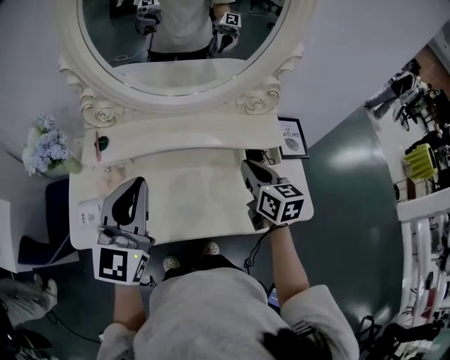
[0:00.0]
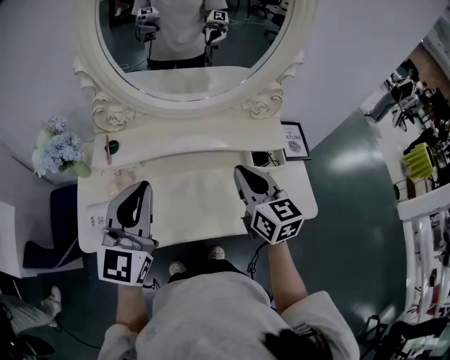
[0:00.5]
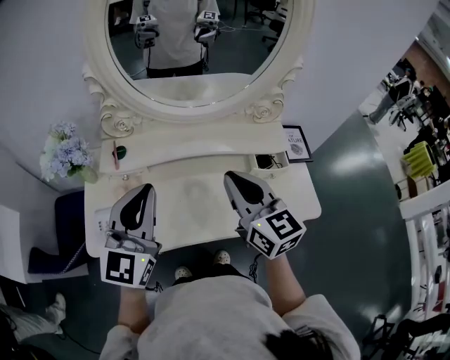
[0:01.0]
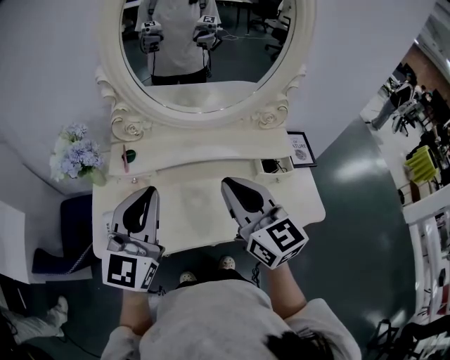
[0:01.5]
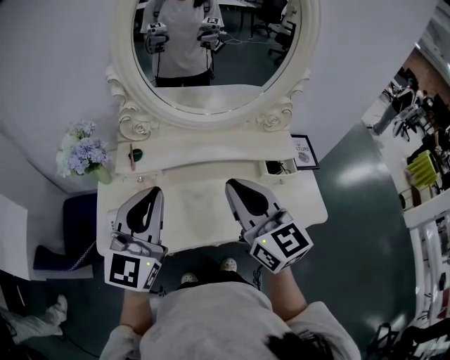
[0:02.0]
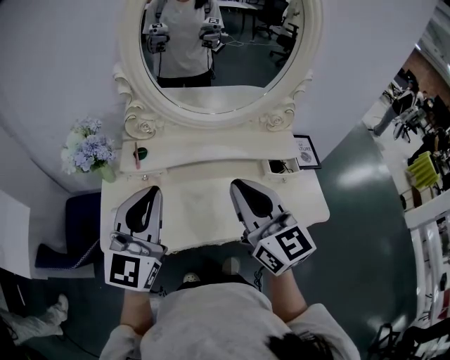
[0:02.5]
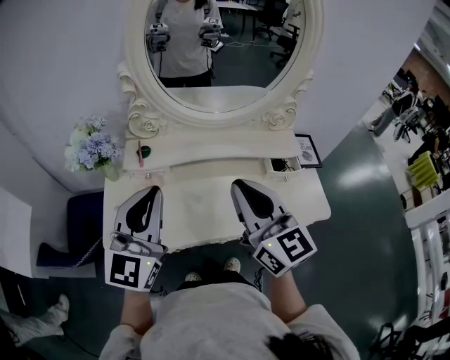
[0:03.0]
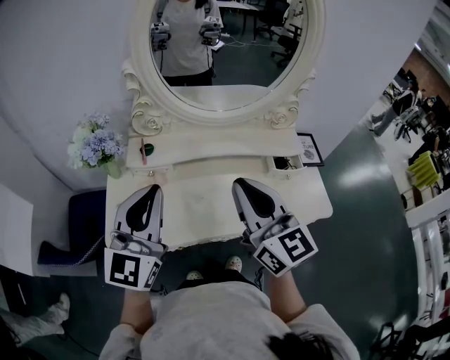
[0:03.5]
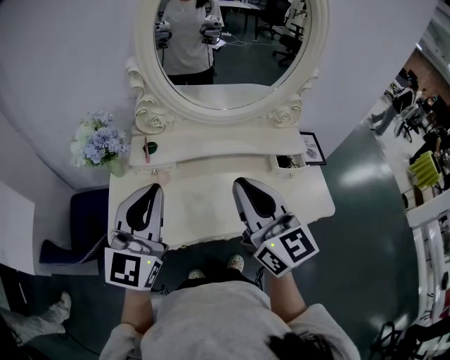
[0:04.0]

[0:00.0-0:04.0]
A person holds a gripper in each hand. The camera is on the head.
0:00.0 to 0:02.0: The right gripper is displaced to the left, upward and backward by about 25 cm, and turns by about 30 degrees. Meanwhile the left gripper travels to the left by roughly 5 cm.
0:02.0 to 0:04.0: The left gripper shifts by roughly 5 cm. The right gripper moves some 5 cm.

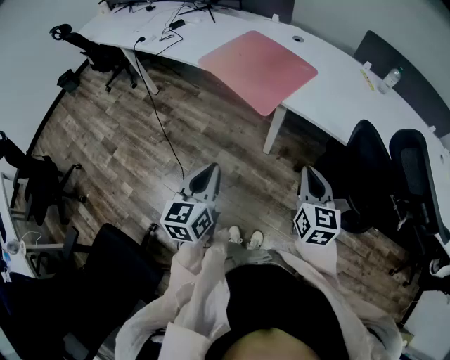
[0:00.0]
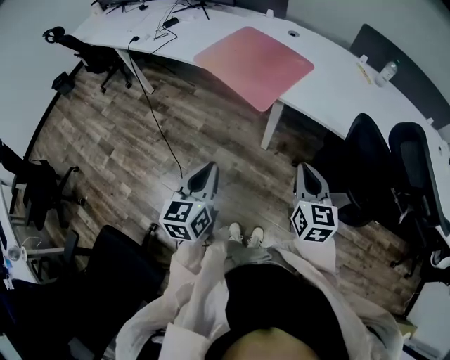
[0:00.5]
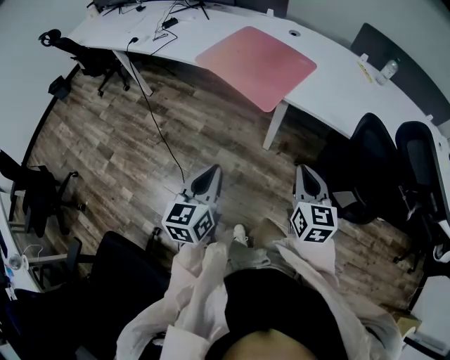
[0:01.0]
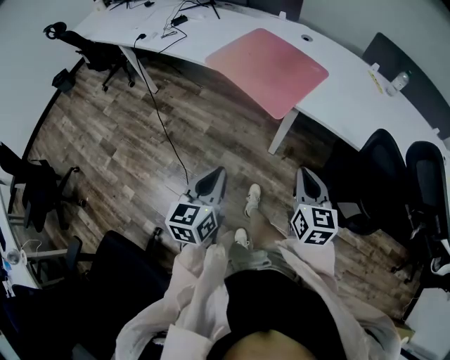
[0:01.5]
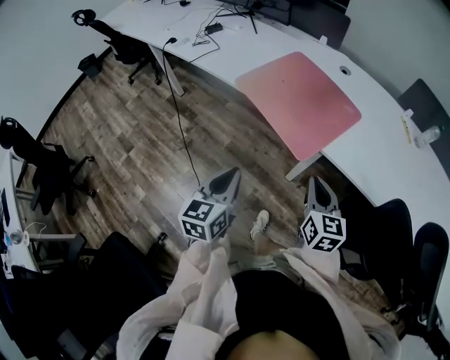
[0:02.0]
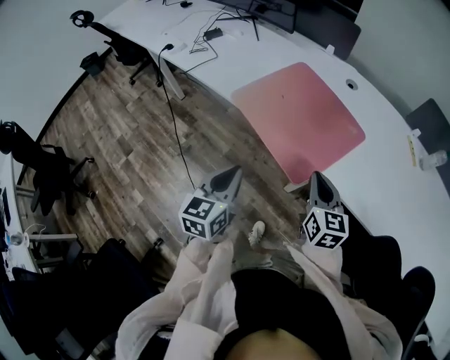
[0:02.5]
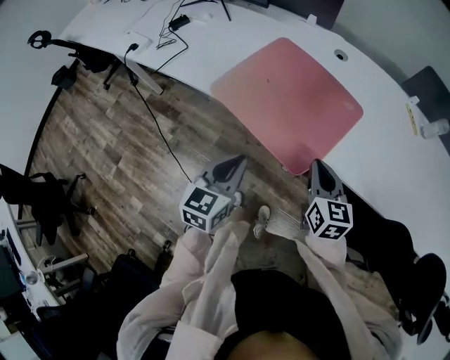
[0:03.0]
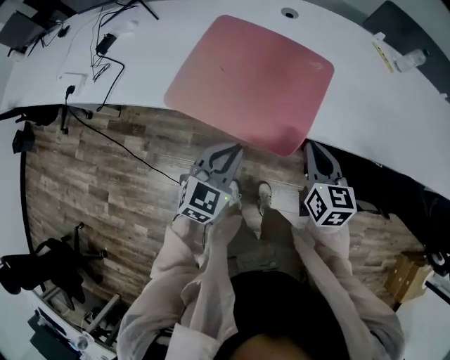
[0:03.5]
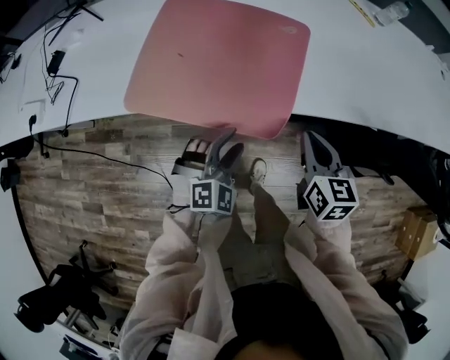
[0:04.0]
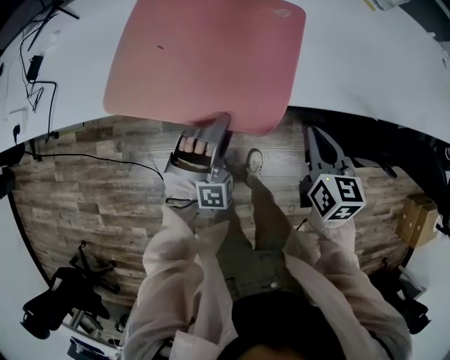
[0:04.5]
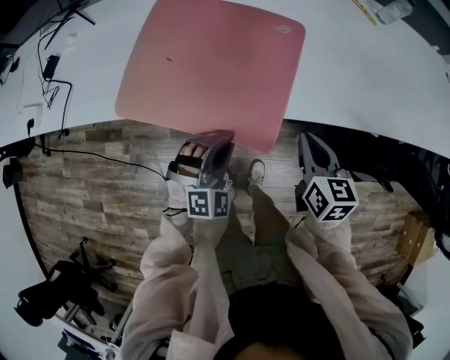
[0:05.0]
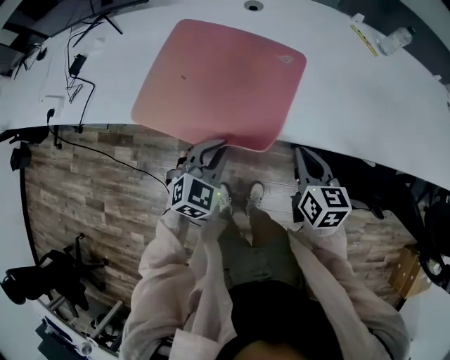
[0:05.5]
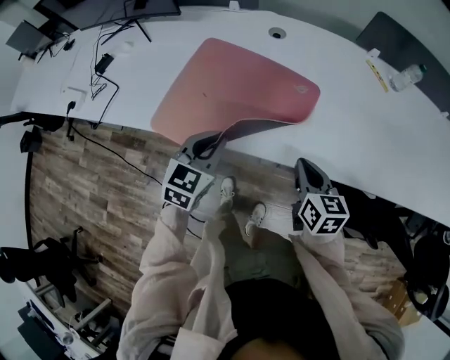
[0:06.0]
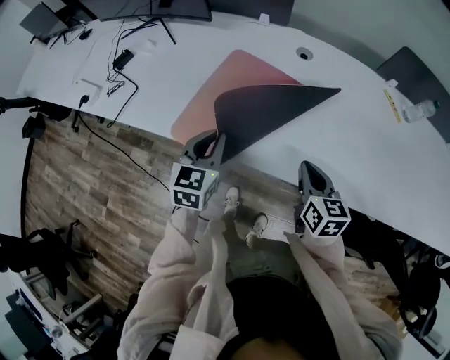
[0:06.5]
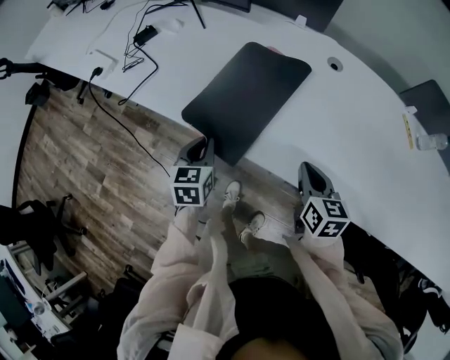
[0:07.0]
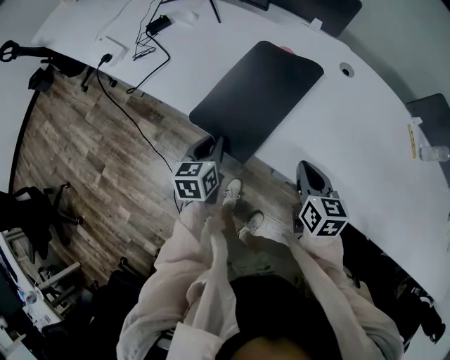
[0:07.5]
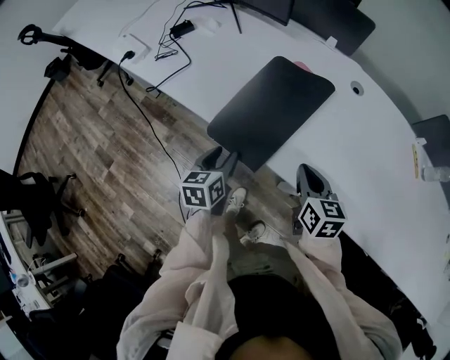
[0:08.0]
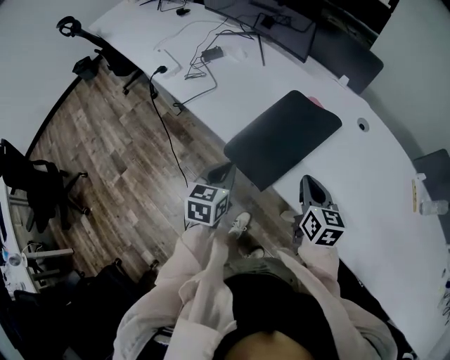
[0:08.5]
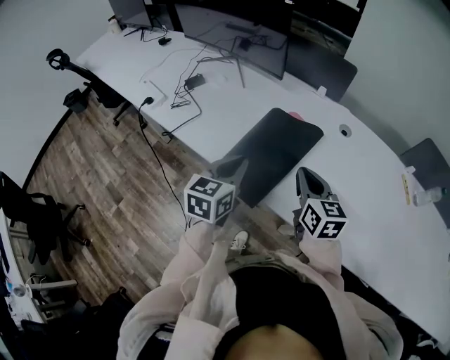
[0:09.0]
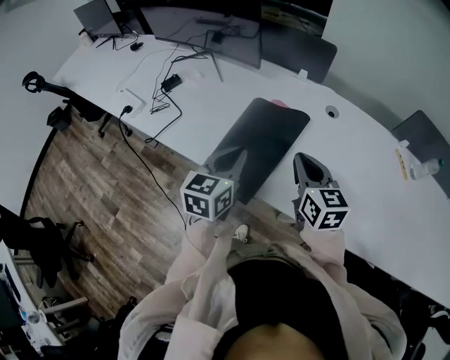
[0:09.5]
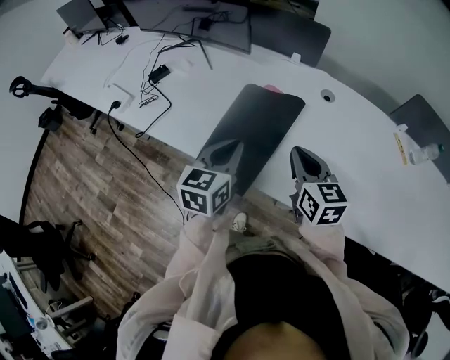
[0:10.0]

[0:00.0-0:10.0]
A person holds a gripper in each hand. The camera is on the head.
0:00.0 to 0:02.0: Both grippers move forward and to the left, about 20 cm.
0:02.0 to 0:04.0: The left gripper moves about 25 cm, rotates around the line of its fingers by roughly 70 degrees, clockwise from behind, and opens. The right gripper ends up approximately 15 cm from where it was, and swivels approximately 30 degrees.
0:04.0 to 0:06.0: The left gripper goes about 15 cm upward and forward, rolls counterclockwise, seen from behind, by roughly 40 degrees, and closes. Meanwhile the right gripper goes about 5 cm forward.
0:06.0 to 0:08.0: The left gripper moves to the left and downward, roughly 20 cm, rotates around the line of its fingers by about 40 degrees, counterclockwise from behind, and opens up, while the right gripper shifts about 20 cm to the left and forward, and changes its angle by about 20 degrees.
0:08.0 to 0:10.0: The right gripper moves upward and forward, roughly 10 cm. The left gripper is displaced upward, to the right and forward by some 20 cm, changes its angle by about 30 degrees, and closes.

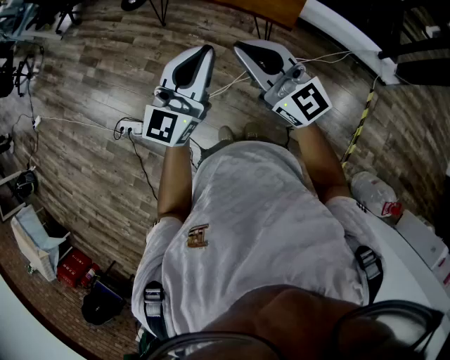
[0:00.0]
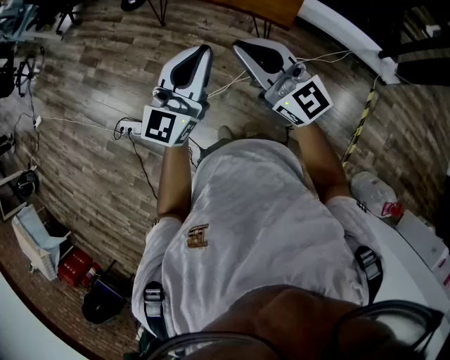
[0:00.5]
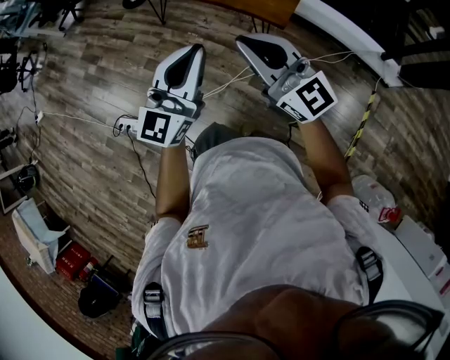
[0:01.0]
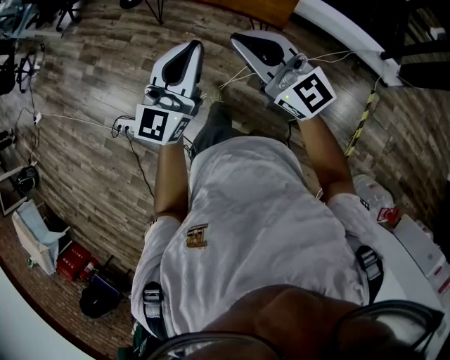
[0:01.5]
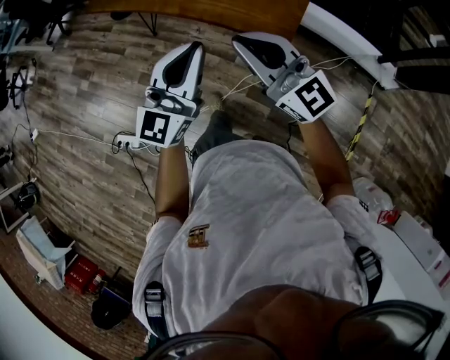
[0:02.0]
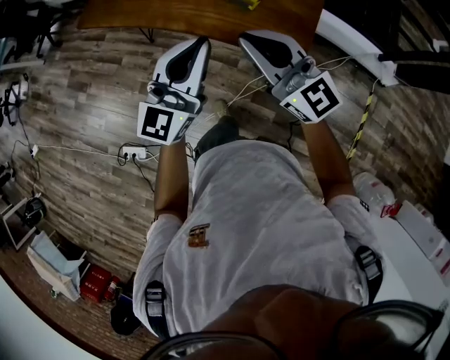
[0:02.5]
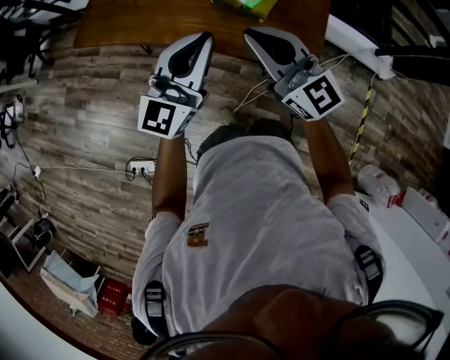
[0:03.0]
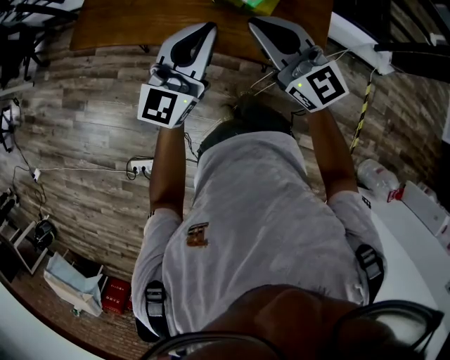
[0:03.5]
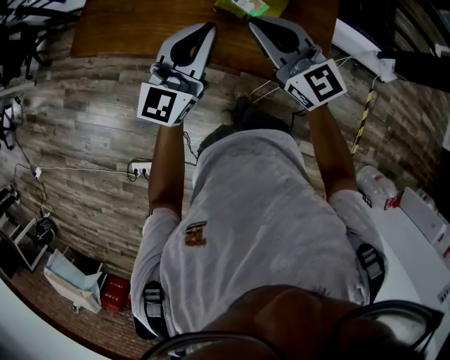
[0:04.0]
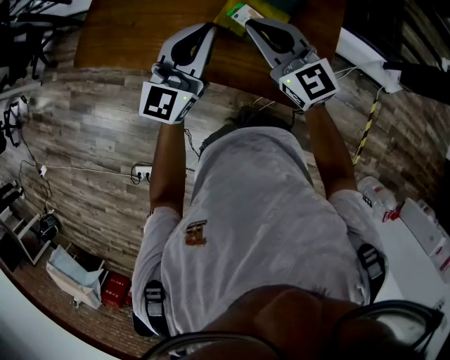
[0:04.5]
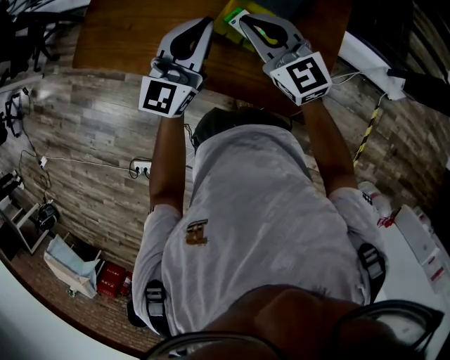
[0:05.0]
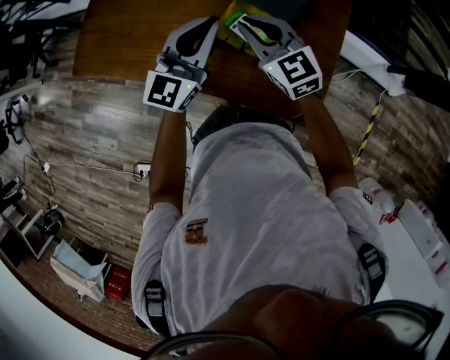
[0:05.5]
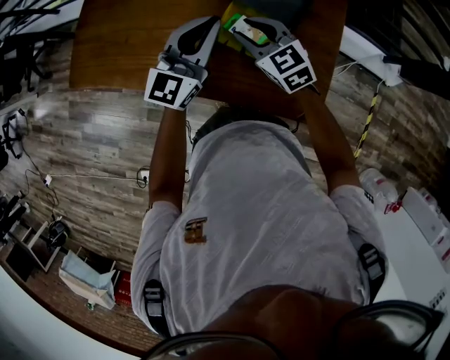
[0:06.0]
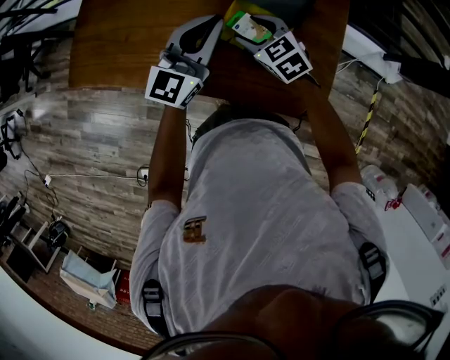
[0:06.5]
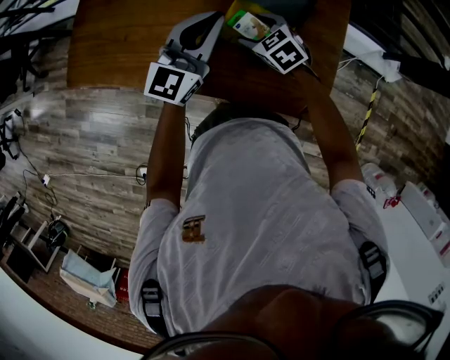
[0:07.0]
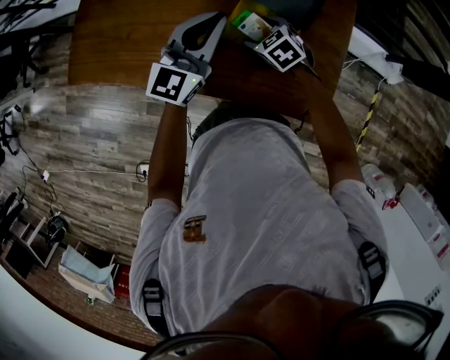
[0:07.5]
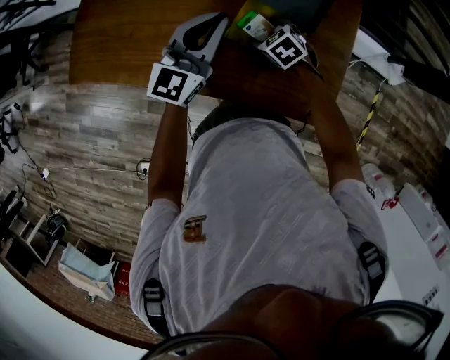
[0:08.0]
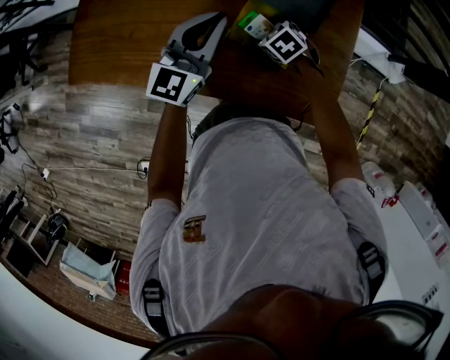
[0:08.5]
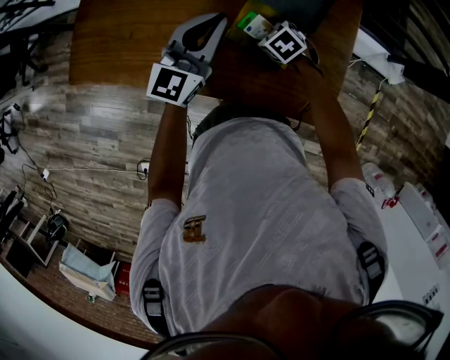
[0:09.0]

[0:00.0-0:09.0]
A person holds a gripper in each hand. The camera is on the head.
0:00.0 to 0:02.0: The two grippers go about 15 cm forward.
0:02.0 to 0:04.5: The pair of grippers is taken forward, roughly 50 cm. The right gripper changes its angle by roughly 20 degrees.
0:04.5 to 0:07.0: The right gripper goes roughly 25 cm downward and forward, tips its fingers downward by roughly 40 degrees, and opens its fingers. The left gripper moves forward and downward, some 15 cm.
0:07.0 to 0:09.0: The right gripper heads downward, covering some 5 cm.

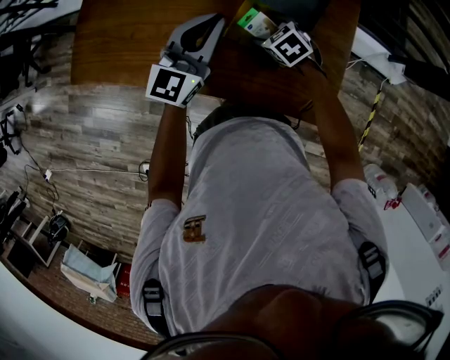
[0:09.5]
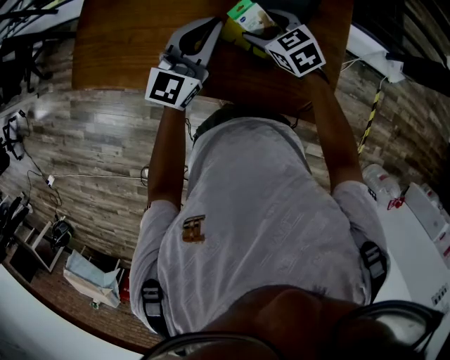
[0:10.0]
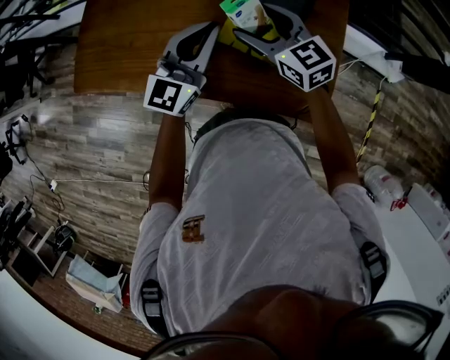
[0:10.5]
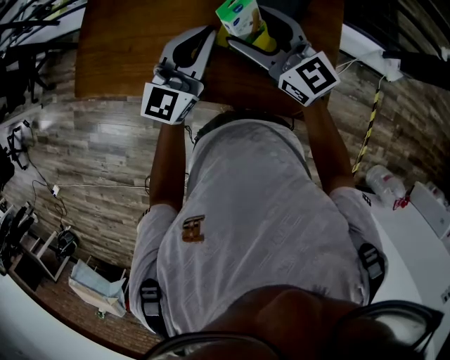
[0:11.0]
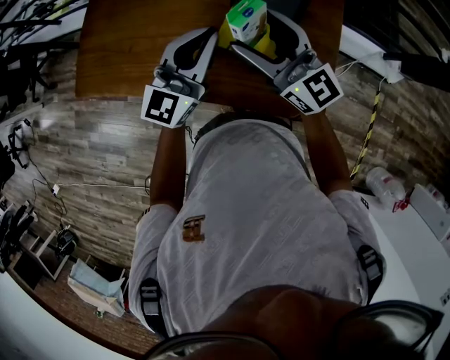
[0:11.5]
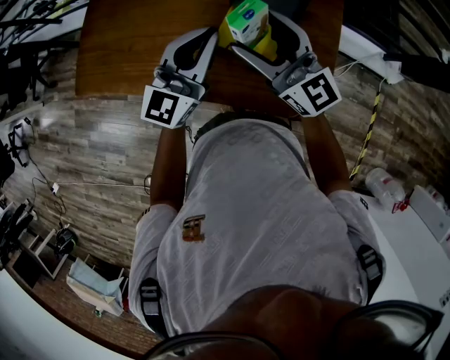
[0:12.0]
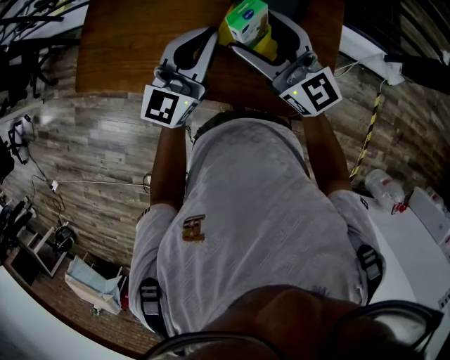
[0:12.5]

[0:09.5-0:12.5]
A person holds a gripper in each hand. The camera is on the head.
0:09.5 to 0:11.0: The left gripper goes approximately 5 cm upward and backward; the right gripper moves upward, some 25 cm, and points its fingers approximately 60 degrees further upward.
0:11.0 to 0:12.5: The grippers make only small movements.
